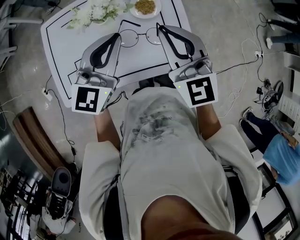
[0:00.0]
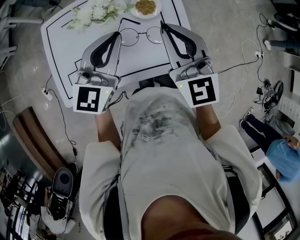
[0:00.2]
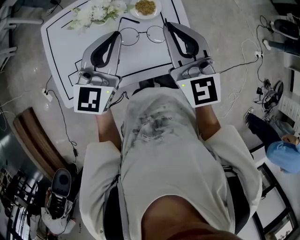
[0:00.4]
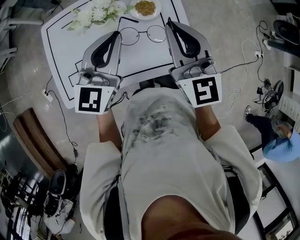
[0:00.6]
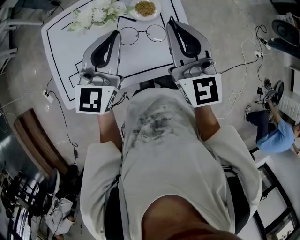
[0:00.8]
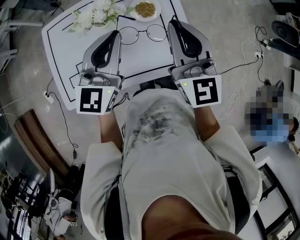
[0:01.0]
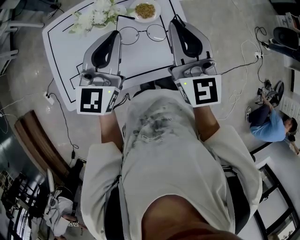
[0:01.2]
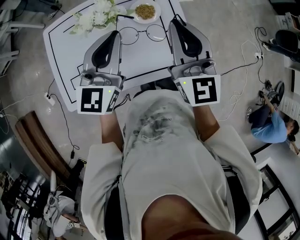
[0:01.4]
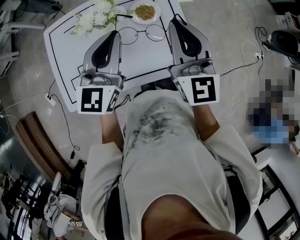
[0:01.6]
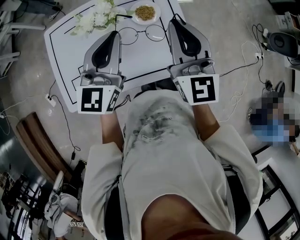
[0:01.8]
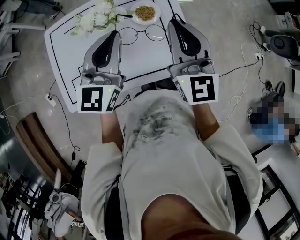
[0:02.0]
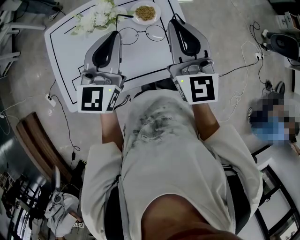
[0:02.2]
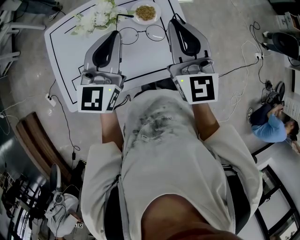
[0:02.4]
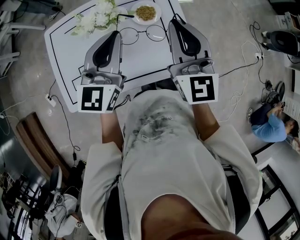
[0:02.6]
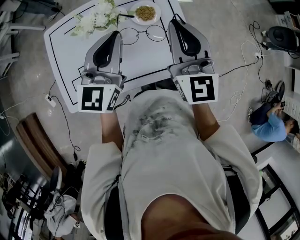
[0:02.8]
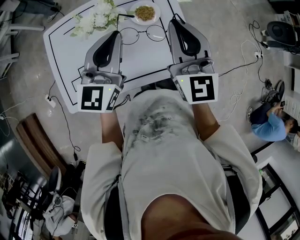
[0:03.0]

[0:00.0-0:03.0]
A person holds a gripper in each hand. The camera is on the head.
0:00.0 to 0:01.6: The grippers make only small movements.
0:01.6 to 0:03.0: Neither gripper changes place.

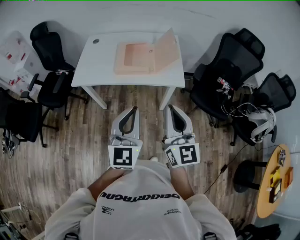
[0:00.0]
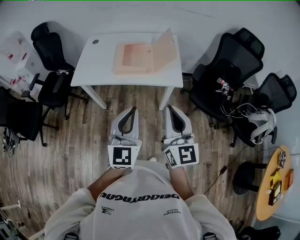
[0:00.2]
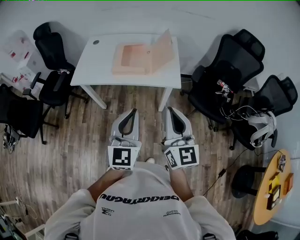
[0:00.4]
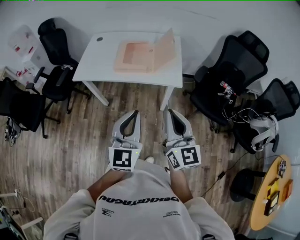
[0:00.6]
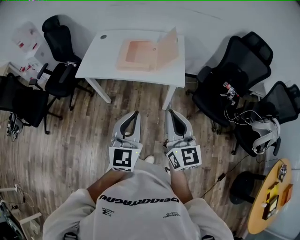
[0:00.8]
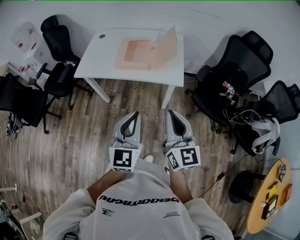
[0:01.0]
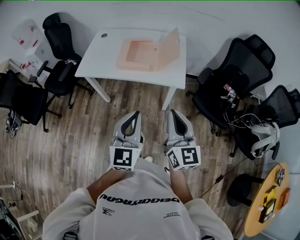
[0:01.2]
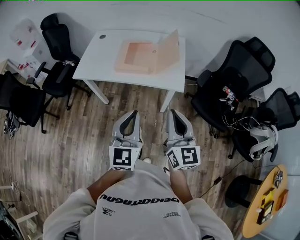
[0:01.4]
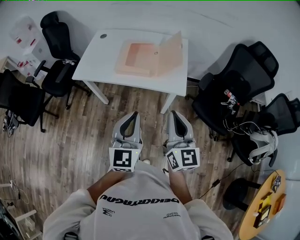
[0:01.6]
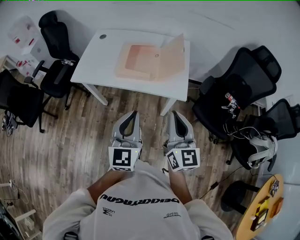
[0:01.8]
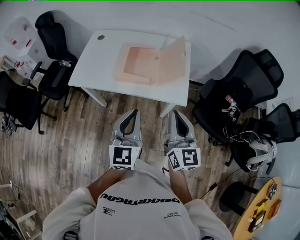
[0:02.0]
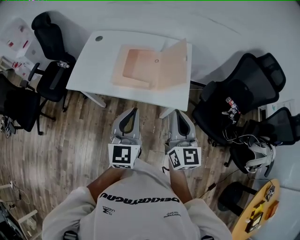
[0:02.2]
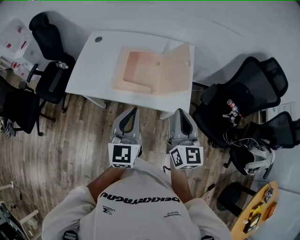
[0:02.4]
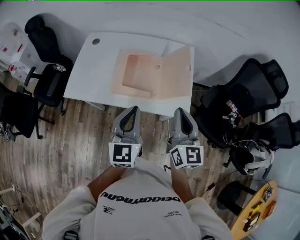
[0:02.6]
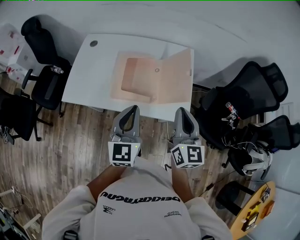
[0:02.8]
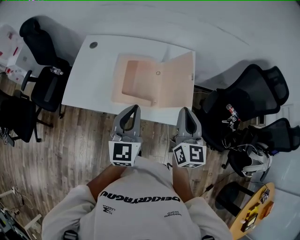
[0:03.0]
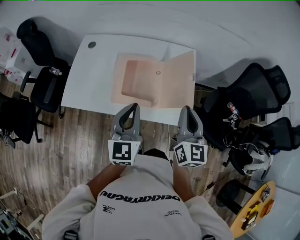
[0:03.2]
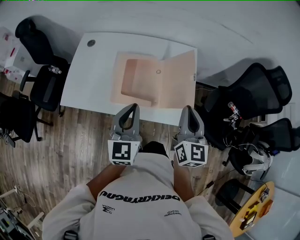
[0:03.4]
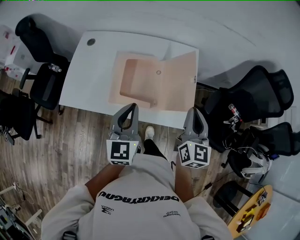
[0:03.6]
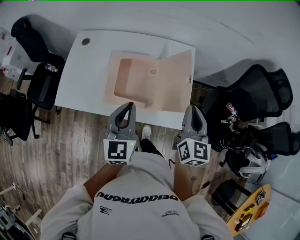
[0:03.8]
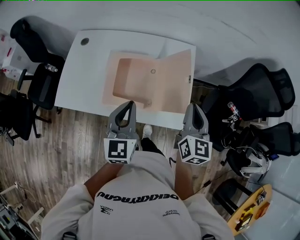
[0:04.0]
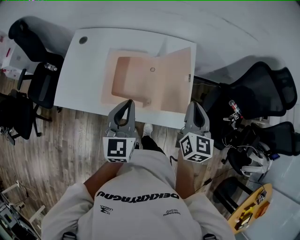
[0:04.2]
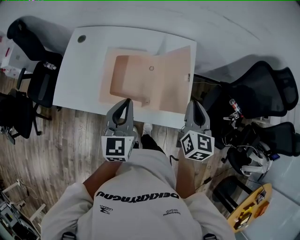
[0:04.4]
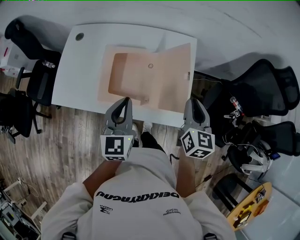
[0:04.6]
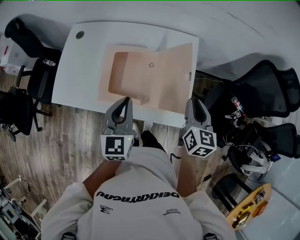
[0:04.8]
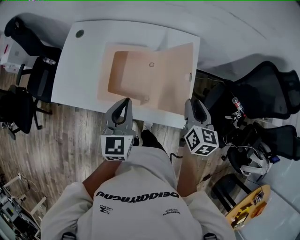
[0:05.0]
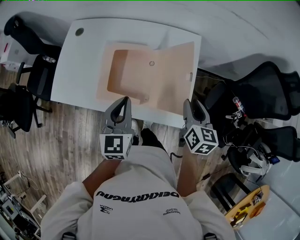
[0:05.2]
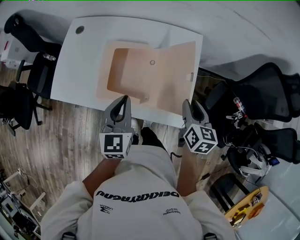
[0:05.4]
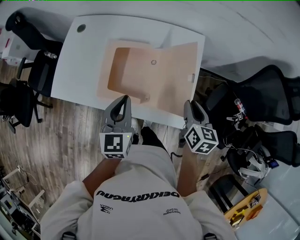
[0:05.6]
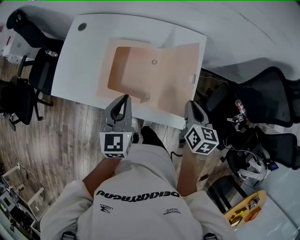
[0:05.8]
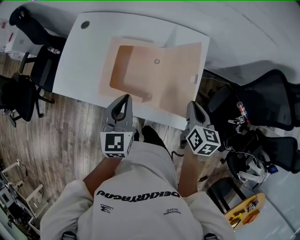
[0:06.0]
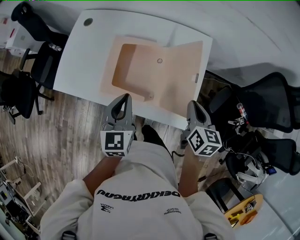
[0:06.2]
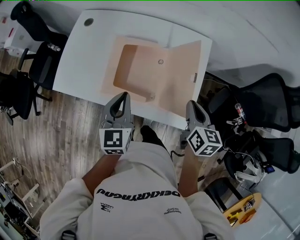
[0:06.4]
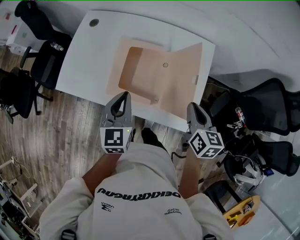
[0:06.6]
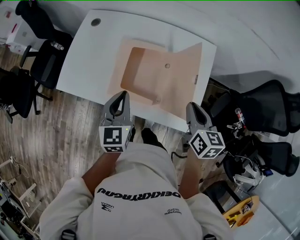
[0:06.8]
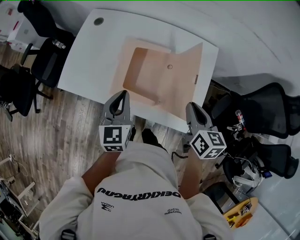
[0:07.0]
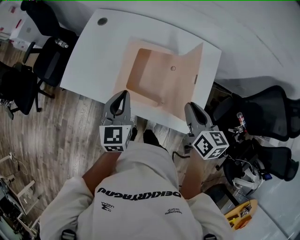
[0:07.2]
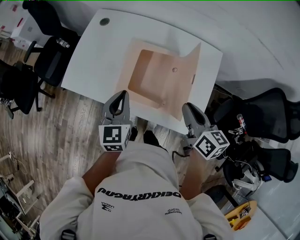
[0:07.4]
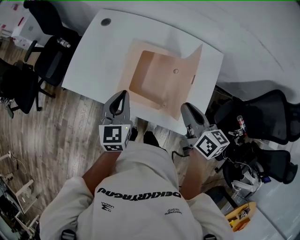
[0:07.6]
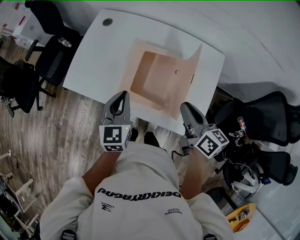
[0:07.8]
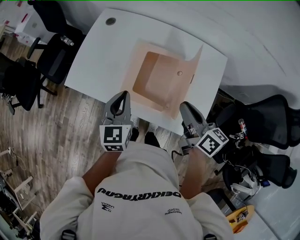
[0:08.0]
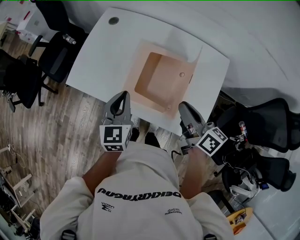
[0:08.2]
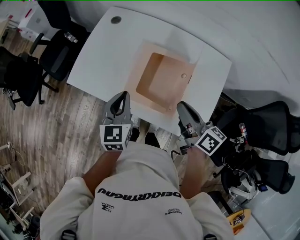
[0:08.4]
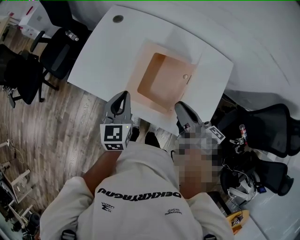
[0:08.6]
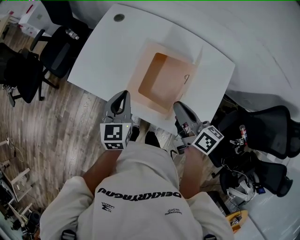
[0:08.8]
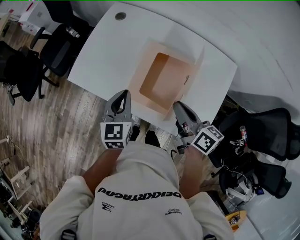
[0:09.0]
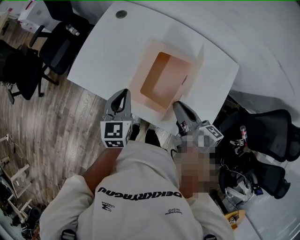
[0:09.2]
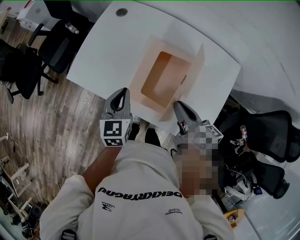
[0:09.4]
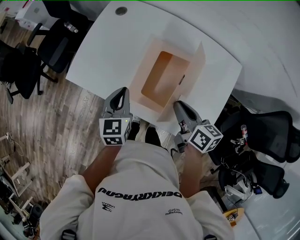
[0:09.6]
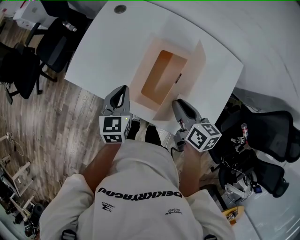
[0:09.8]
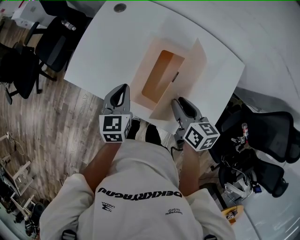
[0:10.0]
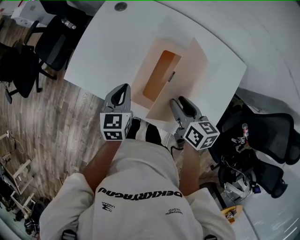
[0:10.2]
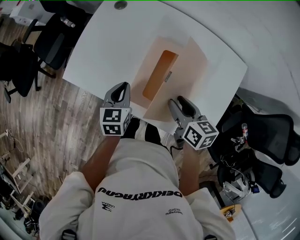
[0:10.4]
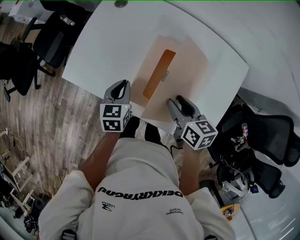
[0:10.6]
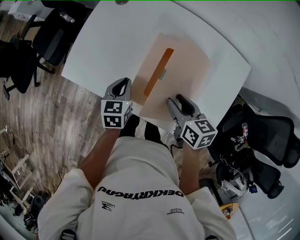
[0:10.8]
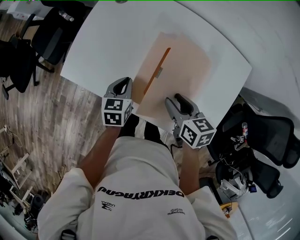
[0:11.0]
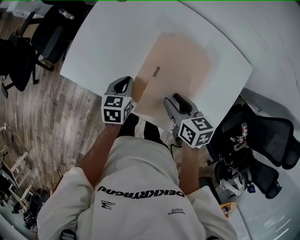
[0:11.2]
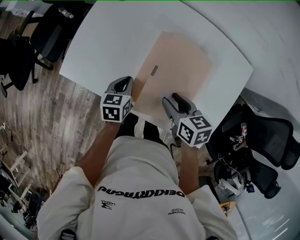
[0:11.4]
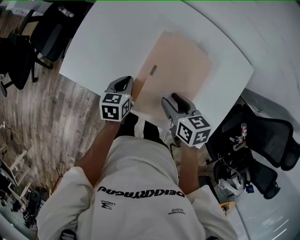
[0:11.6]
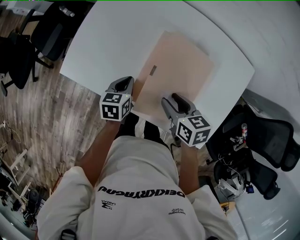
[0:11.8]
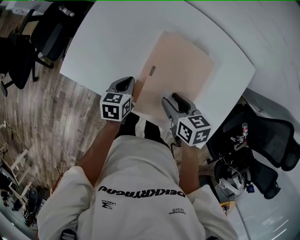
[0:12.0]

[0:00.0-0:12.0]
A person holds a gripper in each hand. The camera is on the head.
0:00.0 to 0:01.6: The grippers both shift to the right by about 5 cm.
0:01.6 to 0:03.0: The two grippers go approximately 30 cm forward.
0:03.0 to 0:04.4: The left gripper moves forward, about 10 cm. The right gripper heads forward, to the right and downward, covering approximately 15 cm.
0:04.4 to 0:06.0: The right gripper is displaced downward by approximately 10 cm, turns by some 20 degrees, and opens and closes again.
0:06.0 to 0:07.6: The right gripper travels to the left and upward by roughly 15 cm, and swivels about 30 degrees. Meanwhile the left gripper is displaced to the left by roughly 10 cm.
0:07.6 to 0:09.0: The right gripper heads to the left and forward, covering about 10 cm. The left gripper moves about 5 cm.
0:09.0 to 0:10.4: The right gripper heads downward, covering approximately 10 cm, rotates roughly 20 degrees, and opens its fingers. The left gripper moves downward and forward, some 10 cm.
0:10.4 to 0:12.0: The right gripper changes place by approximately 5 cm, while the left gripper goes some 10 cm downward.

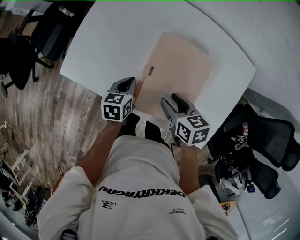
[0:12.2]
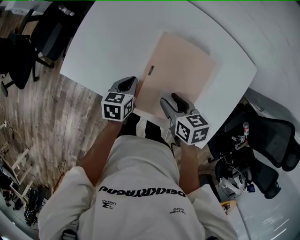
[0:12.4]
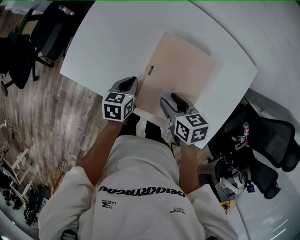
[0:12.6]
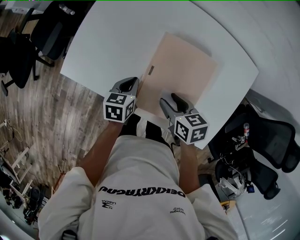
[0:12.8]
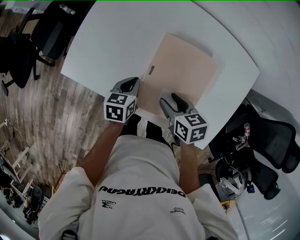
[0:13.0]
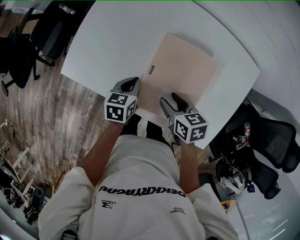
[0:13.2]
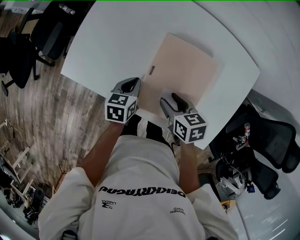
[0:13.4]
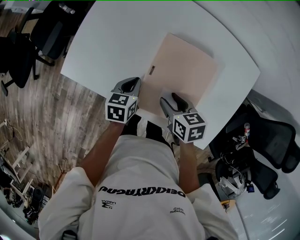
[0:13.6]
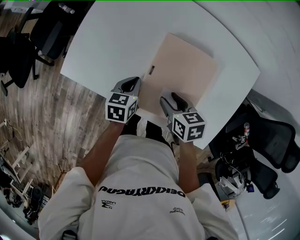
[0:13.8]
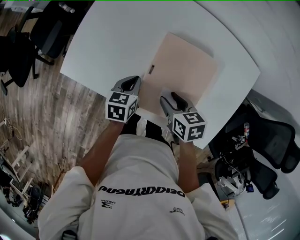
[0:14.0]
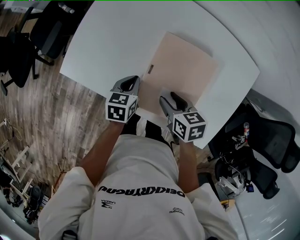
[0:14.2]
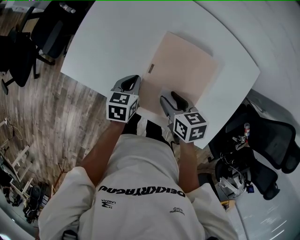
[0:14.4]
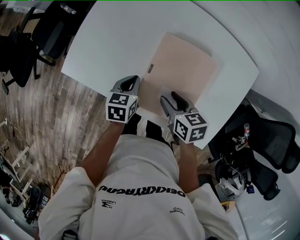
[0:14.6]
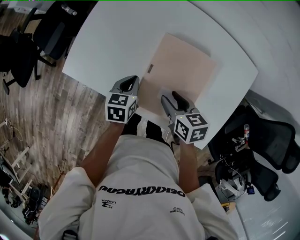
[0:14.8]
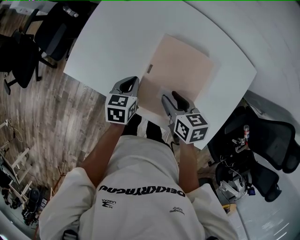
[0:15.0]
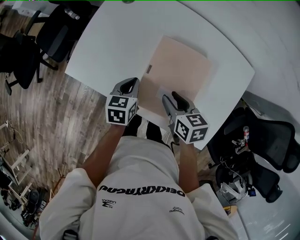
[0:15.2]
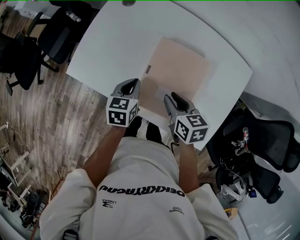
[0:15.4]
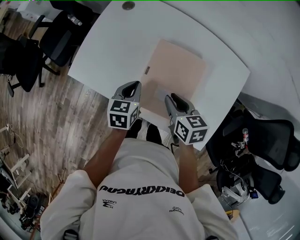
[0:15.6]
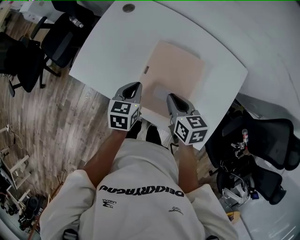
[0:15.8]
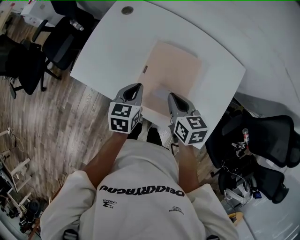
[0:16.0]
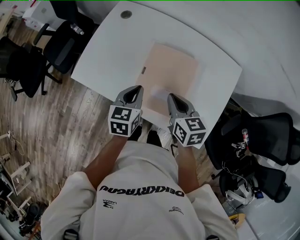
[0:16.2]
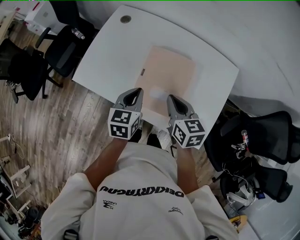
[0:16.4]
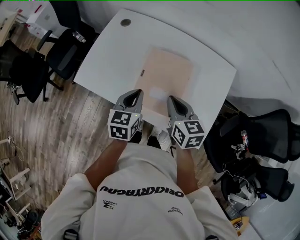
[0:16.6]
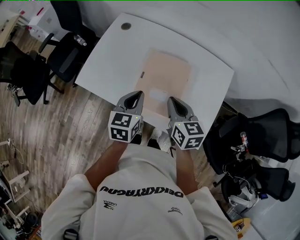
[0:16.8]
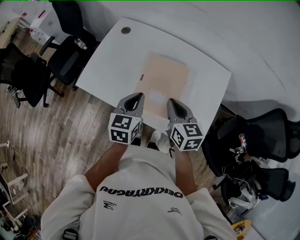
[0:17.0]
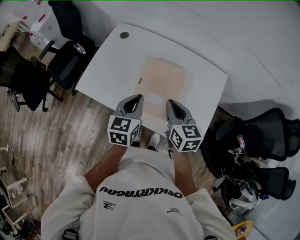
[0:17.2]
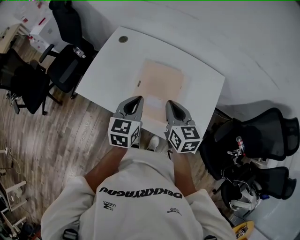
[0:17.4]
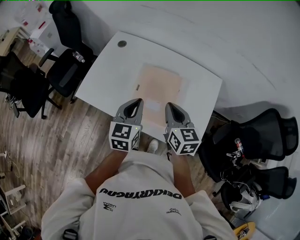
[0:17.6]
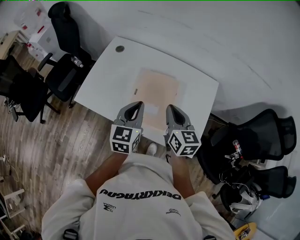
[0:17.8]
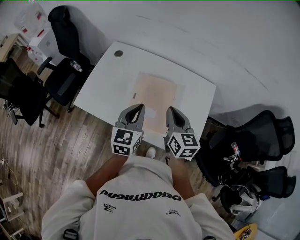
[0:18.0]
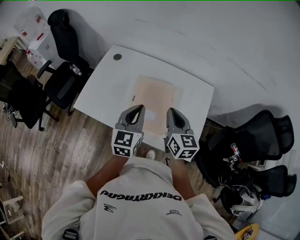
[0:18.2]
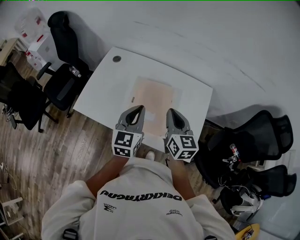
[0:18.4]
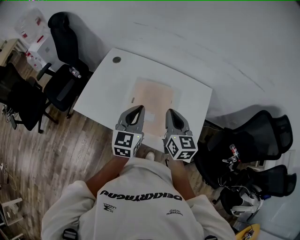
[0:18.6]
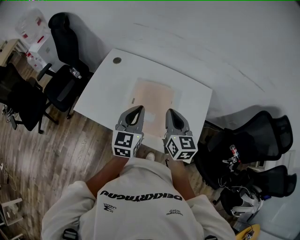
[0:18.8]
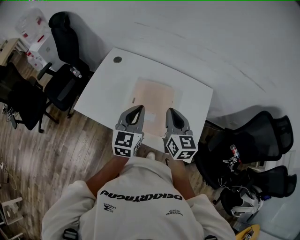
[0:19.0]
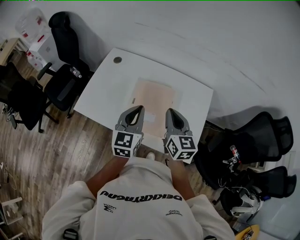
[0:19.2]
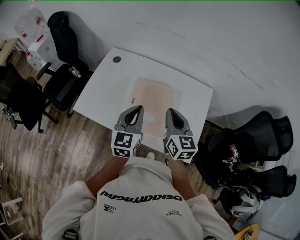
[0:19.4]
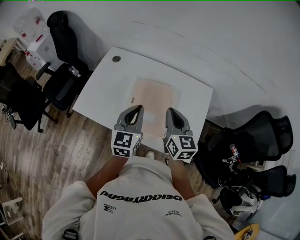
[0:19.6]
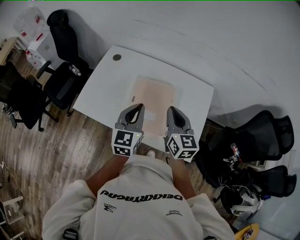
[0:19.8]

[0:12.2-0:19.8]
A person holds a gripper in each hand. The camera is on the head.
0:12.2 to 0:15.2: The grippers make only small movements.
0:15.2 to 0:16.8: The two grippers go about 15 cm upward and backward. The right gripper rotates approximately 20 degrees, and closes up.
0:16.8 to 0:18.2: Both grippers move upward, about 10 cm.
0:18.2 to 0:19.8: Neither gripper changes place.

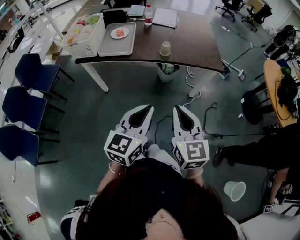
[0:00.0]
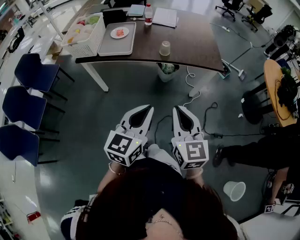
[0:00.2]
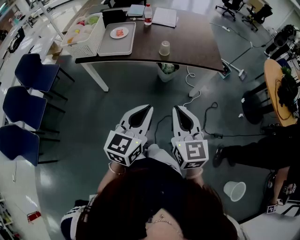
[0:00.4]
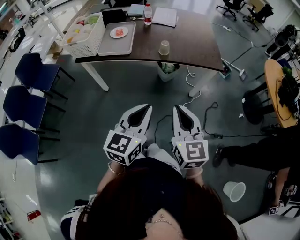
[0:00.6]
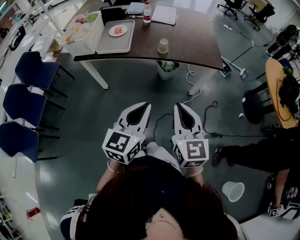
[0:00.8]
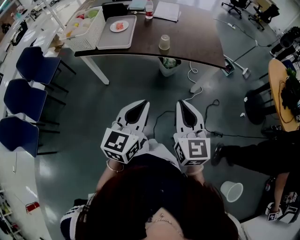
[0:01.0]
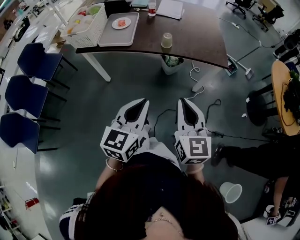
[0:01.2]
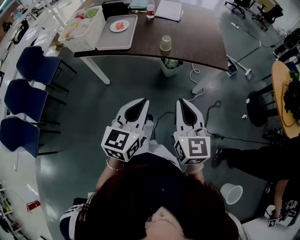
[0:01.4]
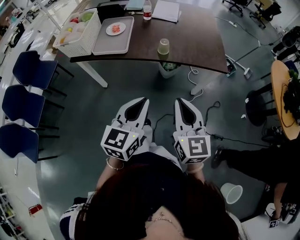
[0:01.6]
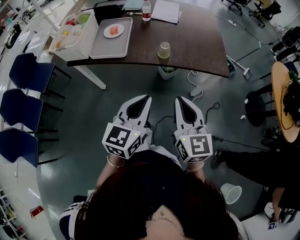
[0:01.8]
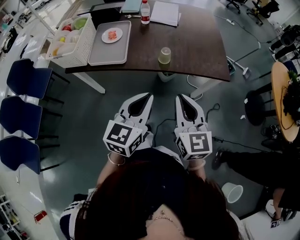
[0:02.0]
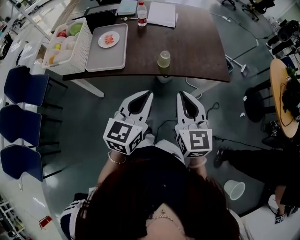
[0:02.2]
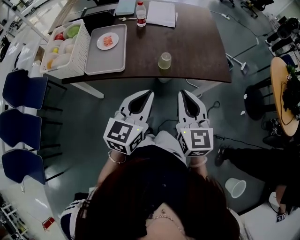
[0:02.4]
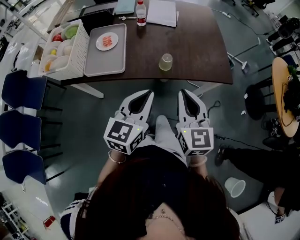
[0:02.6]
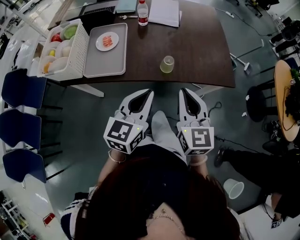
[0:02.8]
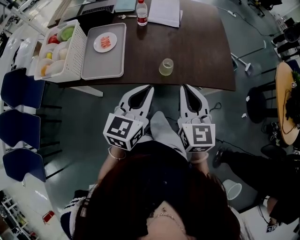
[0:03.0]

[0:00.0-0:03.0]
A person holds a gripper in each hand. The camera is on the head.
0:00.0 to 0:01.6: Both grippers travel together forward, roughly 10 cm.
0:01.6 to 0:03.0: Both grippers travel together forward, approximately 25 cm.
